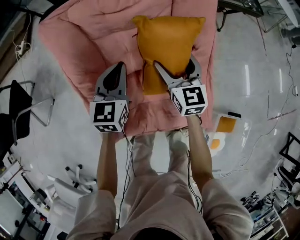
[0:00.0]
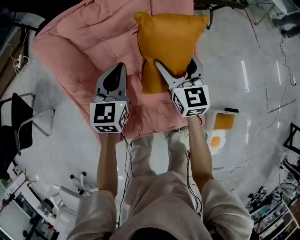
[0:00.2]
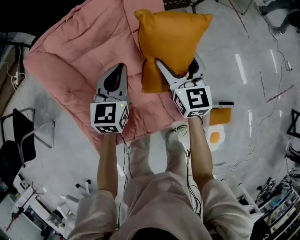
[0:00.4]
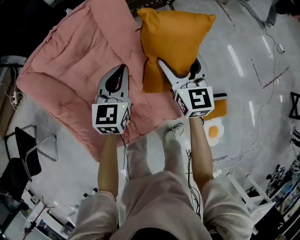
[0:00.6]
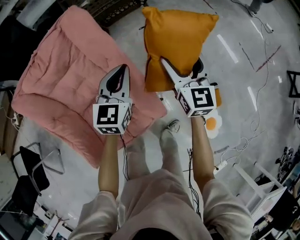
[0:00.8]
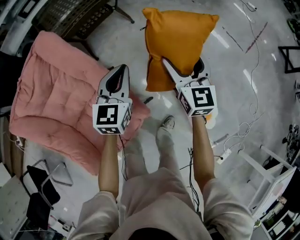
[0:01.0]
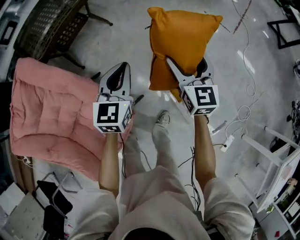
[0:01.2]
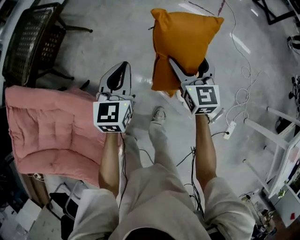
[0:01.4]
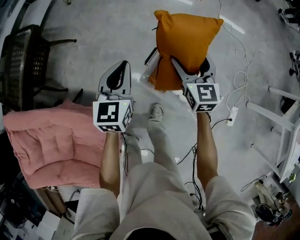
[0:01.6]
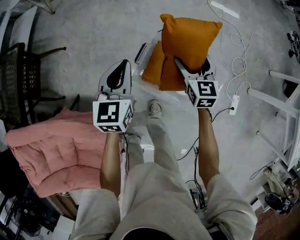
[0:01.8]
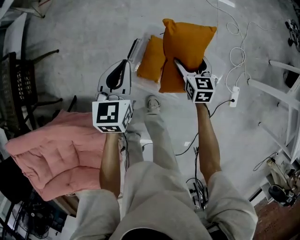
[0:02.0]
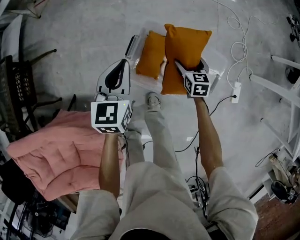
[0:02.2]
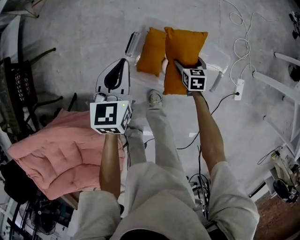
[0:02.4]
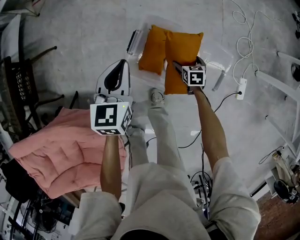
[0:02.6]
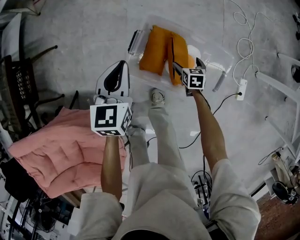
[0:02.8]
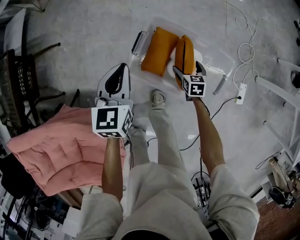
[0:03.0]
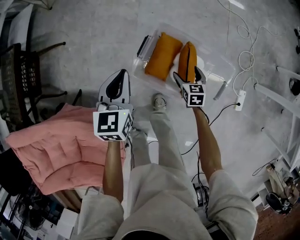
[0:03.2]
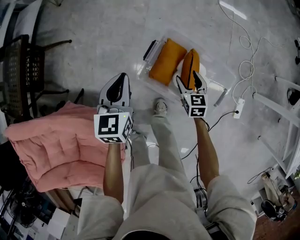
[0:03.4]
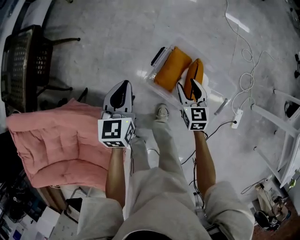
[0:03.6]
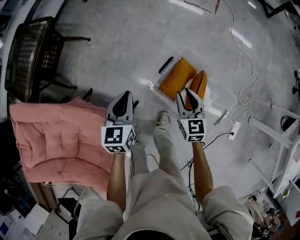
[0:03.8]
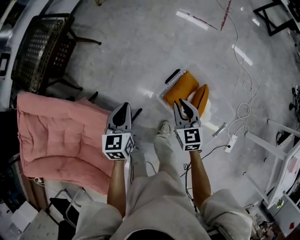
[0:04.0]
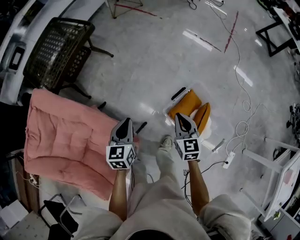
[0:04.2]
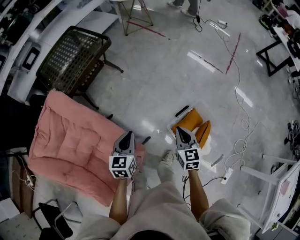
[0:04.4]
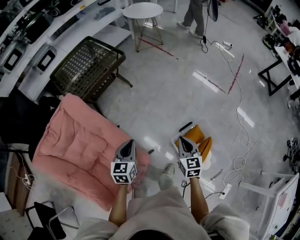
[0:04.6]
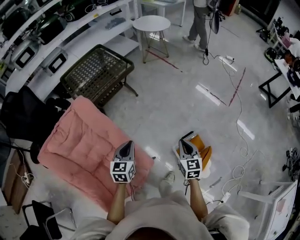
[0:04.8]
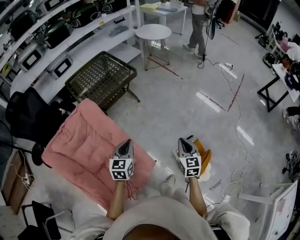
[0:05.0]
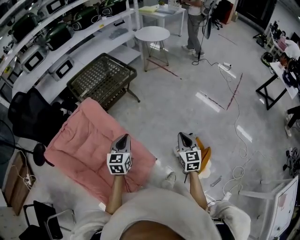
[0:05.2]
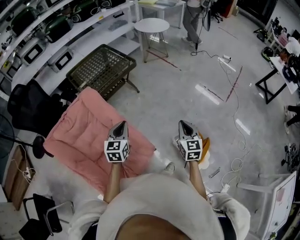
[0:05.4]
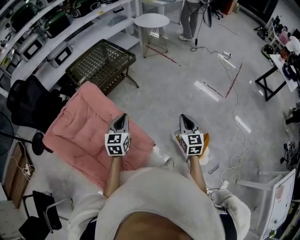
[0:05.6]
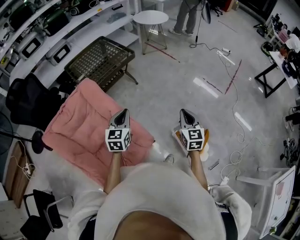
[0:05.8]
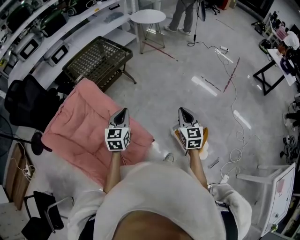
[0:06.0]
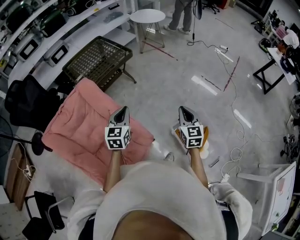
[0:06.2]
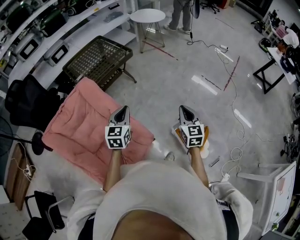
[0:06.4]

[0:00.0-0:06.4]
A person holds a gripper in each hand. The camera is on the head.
0:00.0 to 0:01.6: The pair of grippers is taken some 90 cm. The left gripper rotates roughly 70 degrees. Meanwhile the right gripper rotates approximately 70 degrees.
0:01.6 to 0:03.2: The right gripper goes approximately 30 cm downward, and rotates some 30 degrees, while the left gripper is displaced downward and to the right by approximately 10 cm.
0:03.2 to 0:04.8: The right gripper is displaced upward by some 50 cm, swivels some 40 degrees, and closes up. Meanwhile the left gripper ends up approximately 50 cm from where it was, and turns by roughly 30 degrees.
0:04.8 to 0:06.4: The grippers both shift upward by some 10 cm.

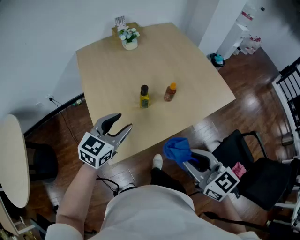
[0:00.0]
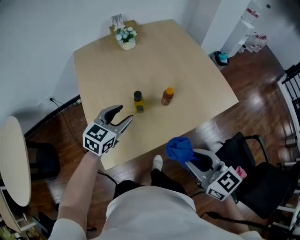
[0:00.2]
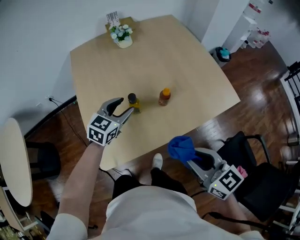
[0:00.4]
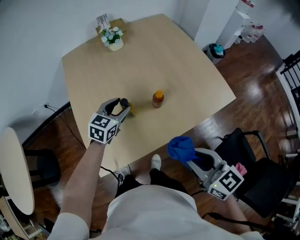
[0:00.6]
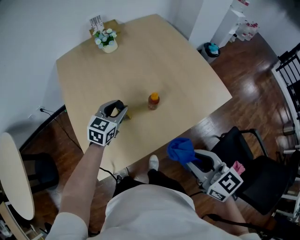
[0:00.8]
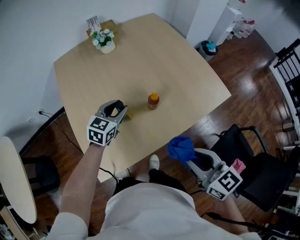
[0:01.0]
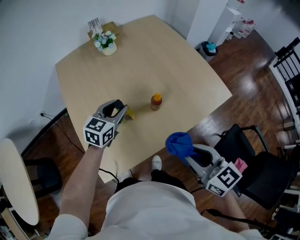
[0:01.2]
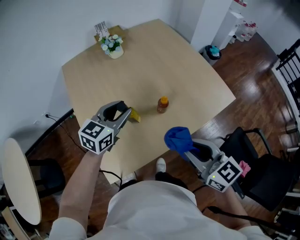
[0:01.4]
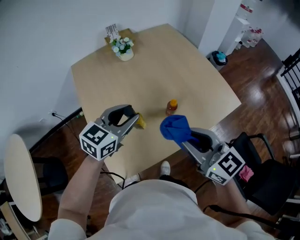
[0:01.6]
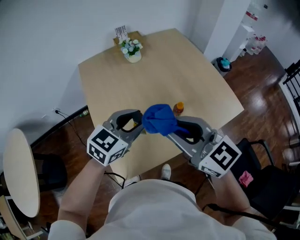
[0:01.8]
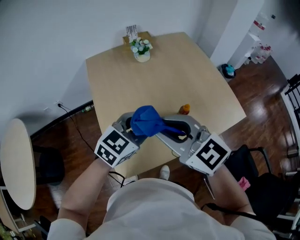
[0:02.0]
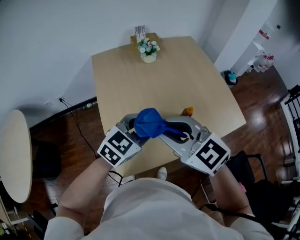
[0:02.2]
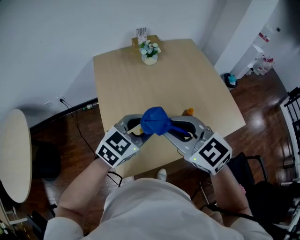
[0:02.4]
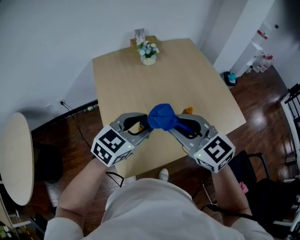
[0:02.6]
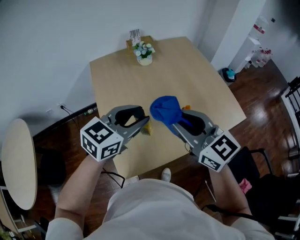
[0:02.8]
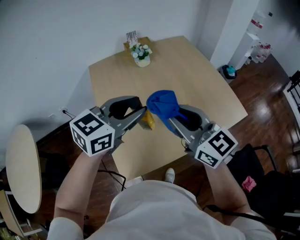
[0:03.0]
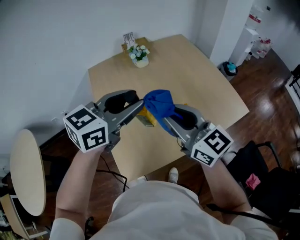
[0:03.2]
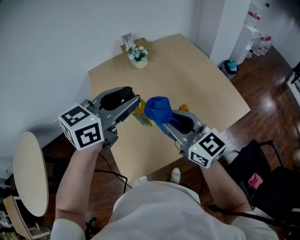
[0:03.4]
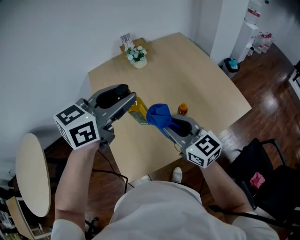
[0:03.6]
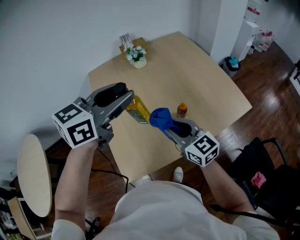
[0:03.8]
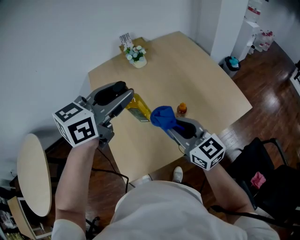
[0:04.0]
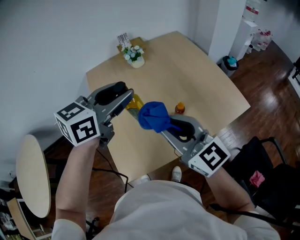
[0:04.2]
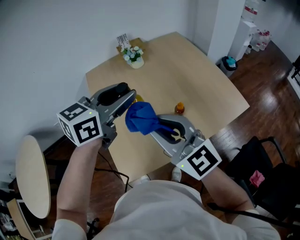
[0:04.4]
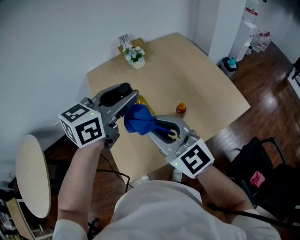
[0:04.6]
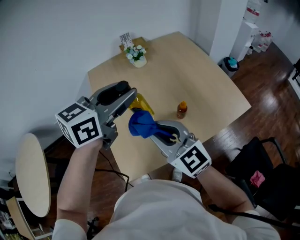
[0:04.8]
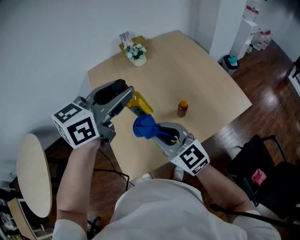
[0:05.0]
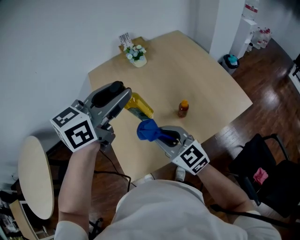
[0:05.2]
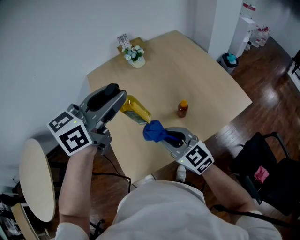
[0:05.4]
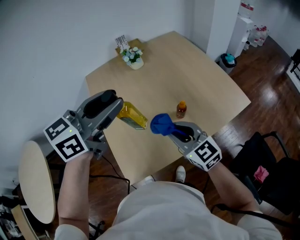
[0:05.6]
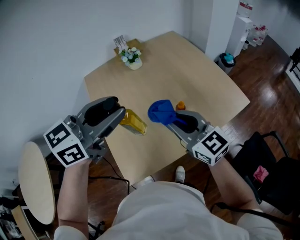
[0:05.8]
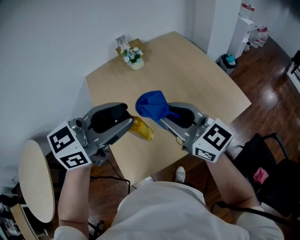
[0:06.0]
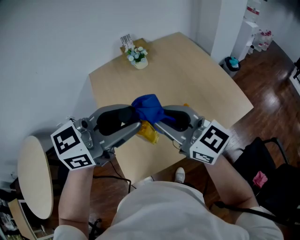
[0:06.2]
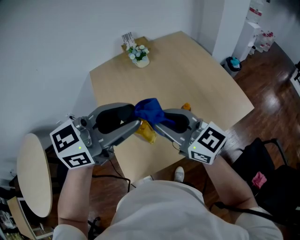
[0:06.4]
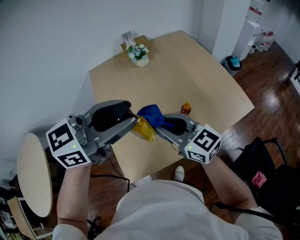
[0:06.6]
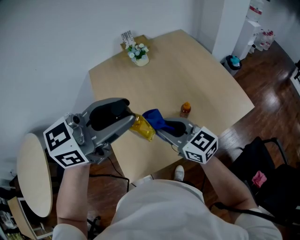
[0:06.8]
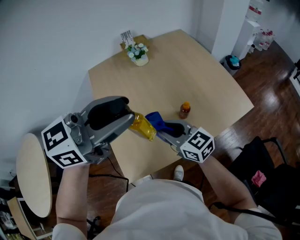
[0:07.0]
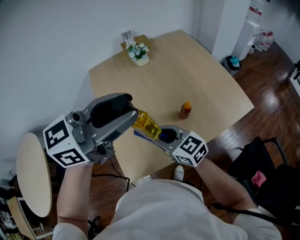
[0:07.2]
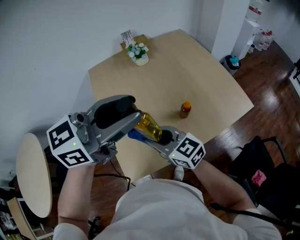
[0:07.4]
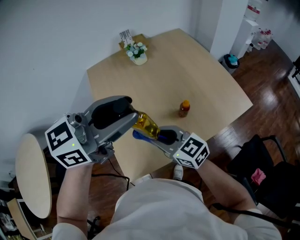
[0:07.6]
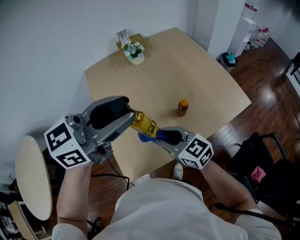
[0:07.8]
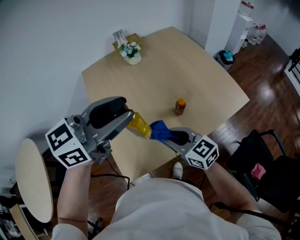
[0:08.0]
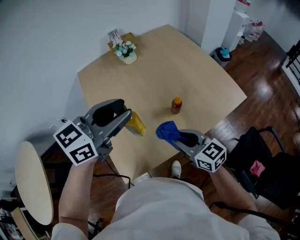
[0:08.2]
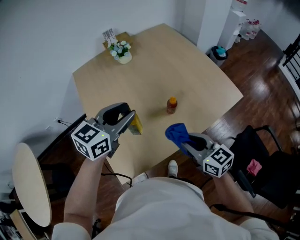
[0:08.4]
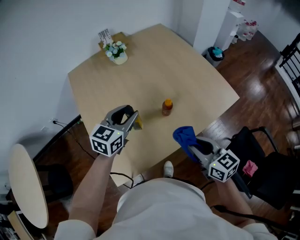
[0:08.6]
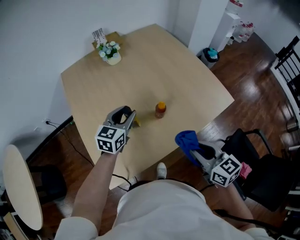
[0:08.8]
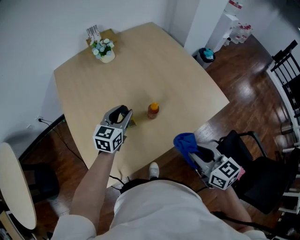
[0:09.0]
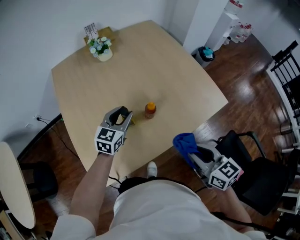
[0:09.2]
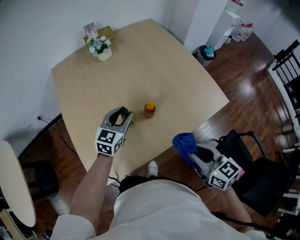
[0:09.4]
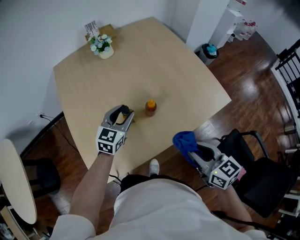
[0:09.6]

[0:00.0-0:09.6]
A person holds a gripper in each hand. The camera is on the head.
0:00.0 to 0:01.6: The left gripper travels forward and to the right by about 15 cm. Meanwhile the right gripper travels forward by some 15 cm.
0:01.6 to 0:03.2: The right gripper is displaced to the left, upward and forward by roughly 10 cm. The left gripper is displaced upward by some 15 cm.
0:03.2 to 0:04.8: The right gripper moves up and down over some 15 cm, changing direction 2 times.
0:04.8 to 0:06.4: The left gripper is displaced backward by about 5 cm, while the right gripper travels downward and back again, some 10 cm each way.
0:06.4 to 0:08.0: The right gripper is displaced downward by about 15 cm.
0:08.0 to 0:09.6: The right gripper goes roughly 20 cm to the right, and turns by about 20 degrees. The left gripper heads downward, covering approximately 30 cm, and swivels approximately 30 degrees.

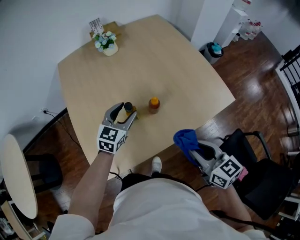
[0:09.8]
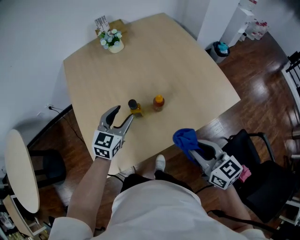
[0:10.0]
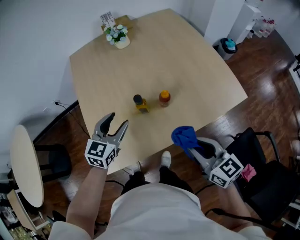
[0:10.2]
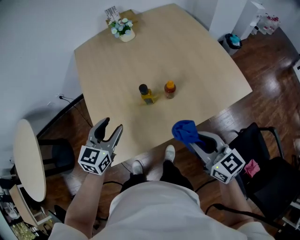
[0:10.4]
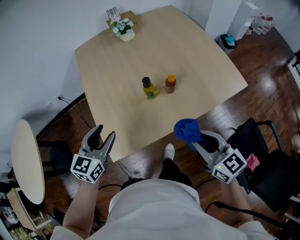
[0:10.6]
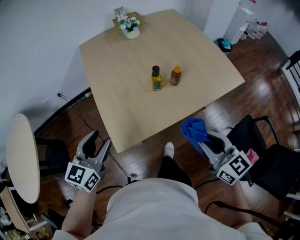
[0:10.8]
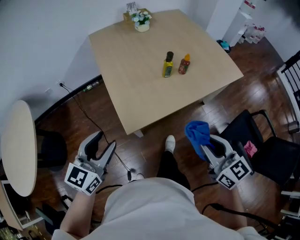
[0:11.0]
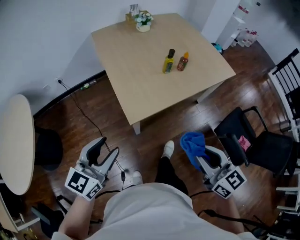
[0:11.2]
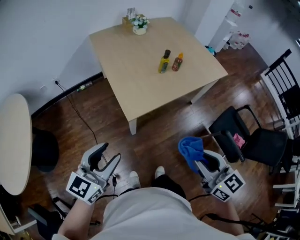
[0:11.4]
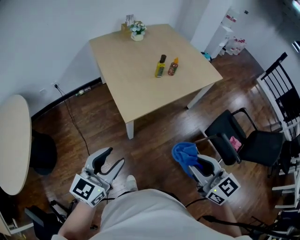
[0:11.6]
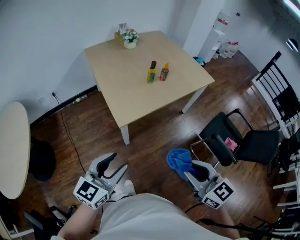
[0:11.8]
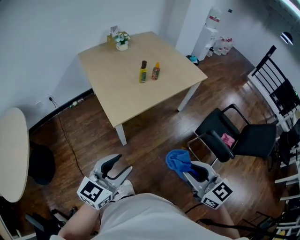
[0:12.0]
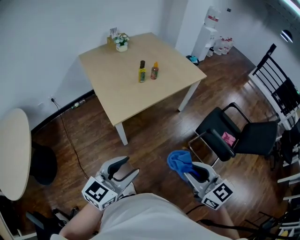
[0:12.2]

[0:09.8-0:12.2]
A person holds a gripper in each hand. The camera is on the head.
0:09.8 to 0:11.0: The left gripper goes approximately 50 cm backward and to the left; the right gripper is displaced backward and to the left by approximately 30 cm.
0:11.0 to 0:12.2: The right gripper travels backward by roughly 30 cm. The left gripper is displaced backward and to the right by about 30 cm, and changes its angle by roughly 20 degrees.

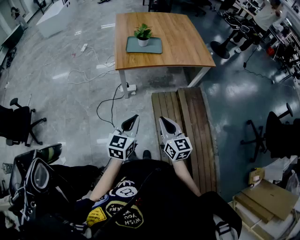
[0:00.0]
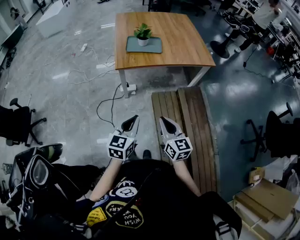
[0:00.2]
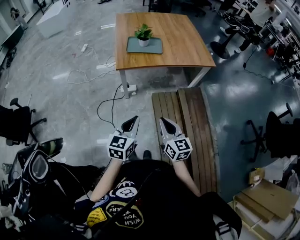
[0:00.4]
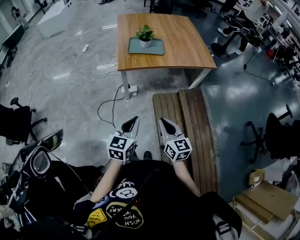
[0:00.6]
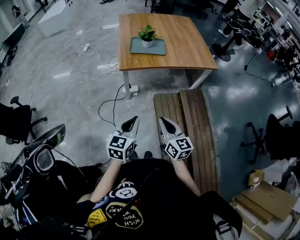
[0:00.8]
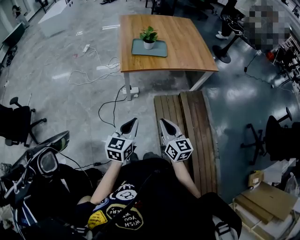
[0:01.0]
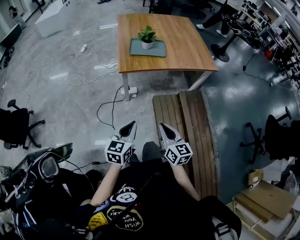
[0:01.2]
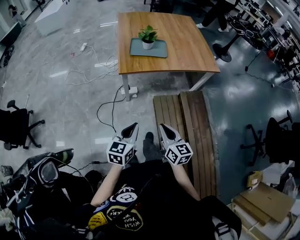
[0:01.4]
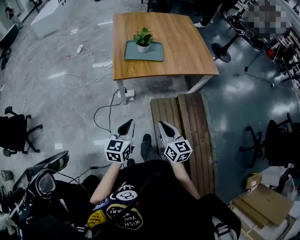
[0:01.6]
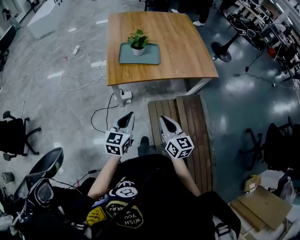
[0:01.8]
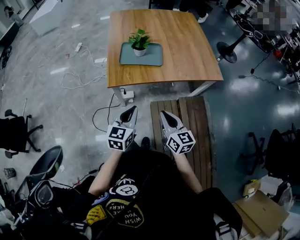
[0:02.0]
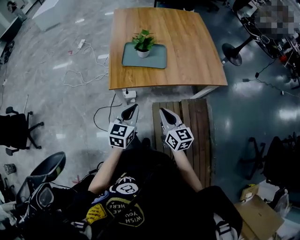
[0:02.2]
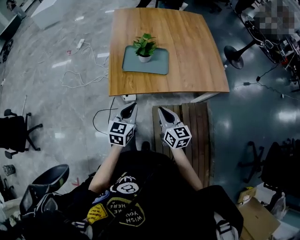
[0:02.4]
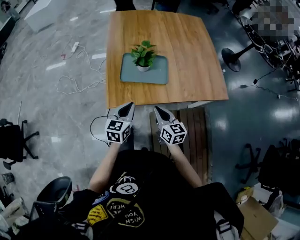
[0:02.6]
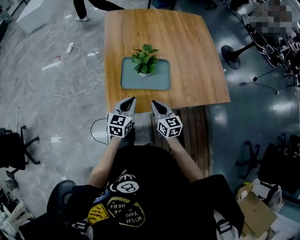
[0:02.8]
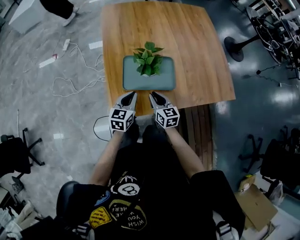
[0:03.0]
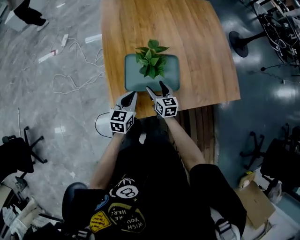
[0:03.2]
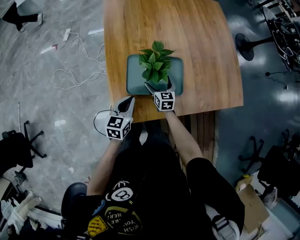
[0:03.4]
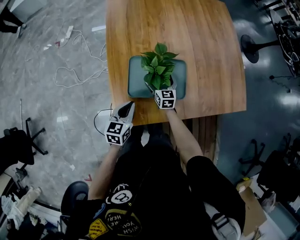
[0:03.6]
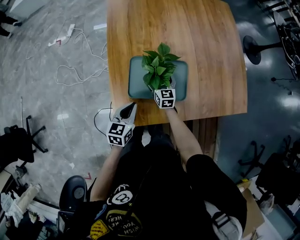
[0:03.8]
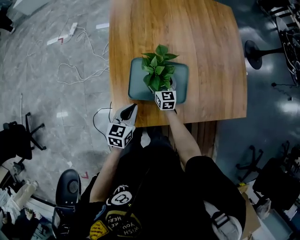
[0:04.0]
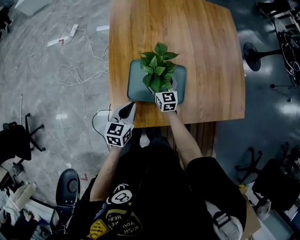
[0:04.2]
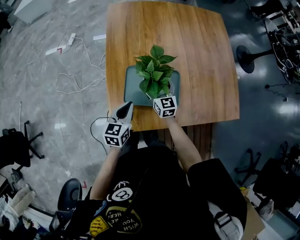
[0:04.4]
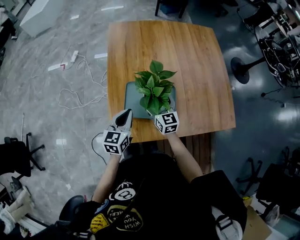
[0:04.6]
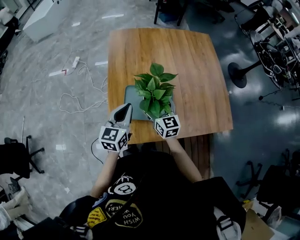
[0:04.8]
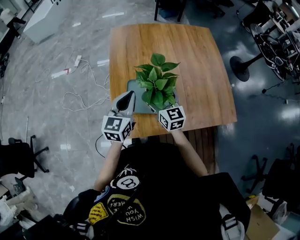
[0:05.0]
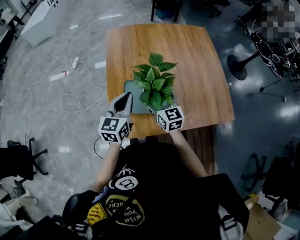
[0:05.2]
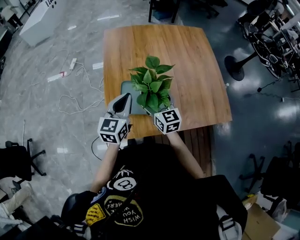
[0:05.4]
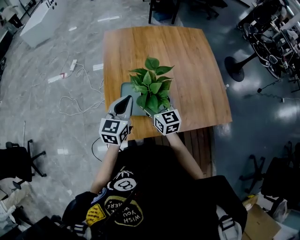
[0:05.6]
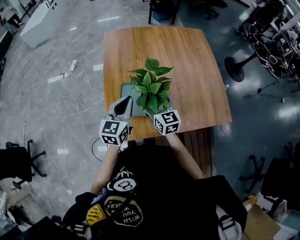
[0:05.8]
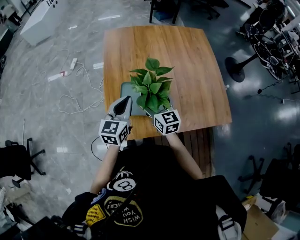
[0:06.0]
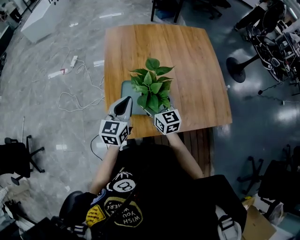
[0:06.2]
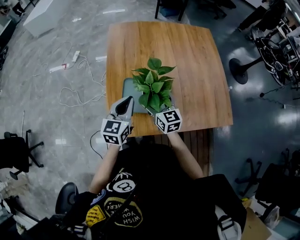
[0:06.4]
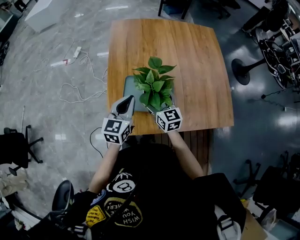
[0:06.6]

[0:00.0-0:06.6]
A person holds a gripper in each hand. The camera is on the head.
0:00.0 to 0:01.6: Both grippers move forward, roughly 10 cm.
0:01.6 to 0:03.2: Both grippers are carried forward, roughly 60 cm. The right gripper opens its fingers.
0:03.2 to 0:05.0: Both grippers travel together upward, about 20 cm. The right gripper rotates some 20 degrees, and opens.
0:05.0 to 0:06.6: The grippers make only small movements.
